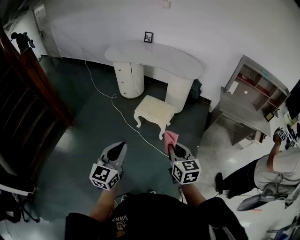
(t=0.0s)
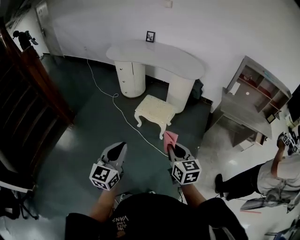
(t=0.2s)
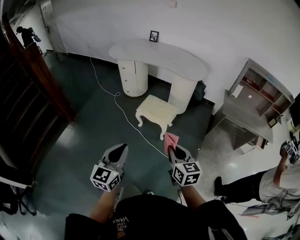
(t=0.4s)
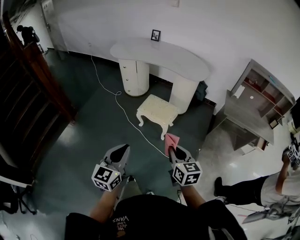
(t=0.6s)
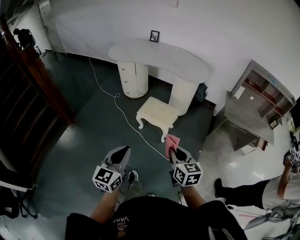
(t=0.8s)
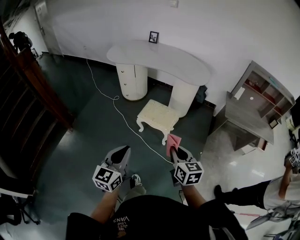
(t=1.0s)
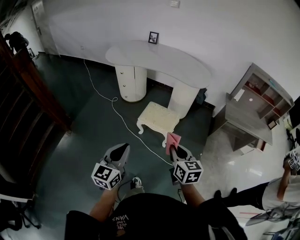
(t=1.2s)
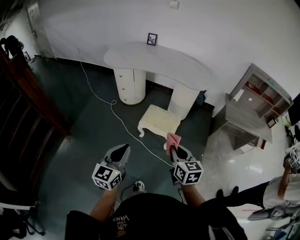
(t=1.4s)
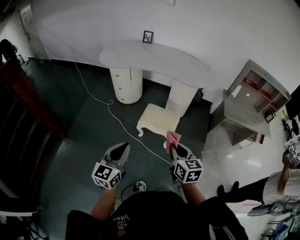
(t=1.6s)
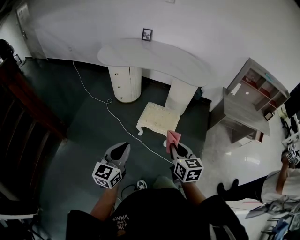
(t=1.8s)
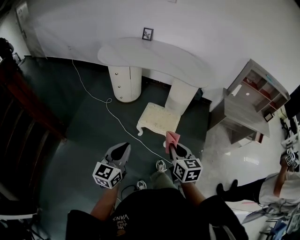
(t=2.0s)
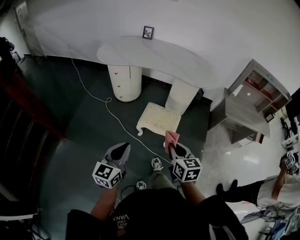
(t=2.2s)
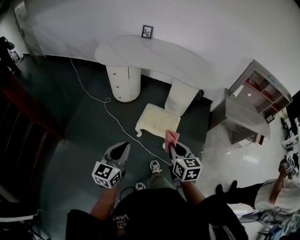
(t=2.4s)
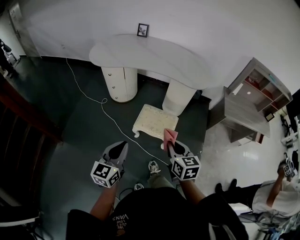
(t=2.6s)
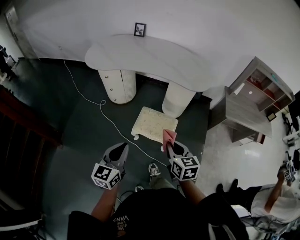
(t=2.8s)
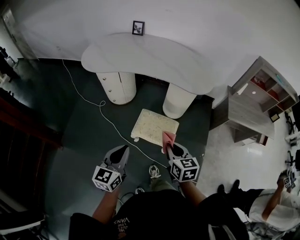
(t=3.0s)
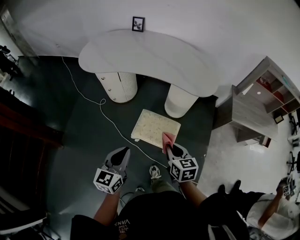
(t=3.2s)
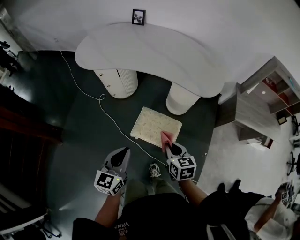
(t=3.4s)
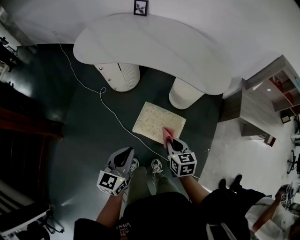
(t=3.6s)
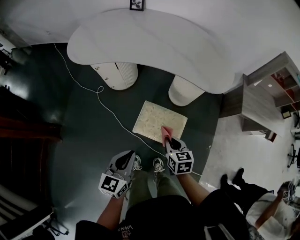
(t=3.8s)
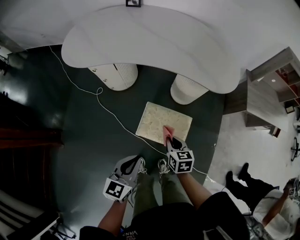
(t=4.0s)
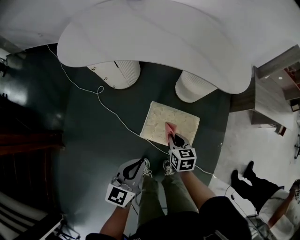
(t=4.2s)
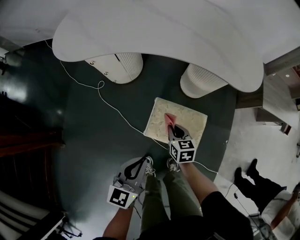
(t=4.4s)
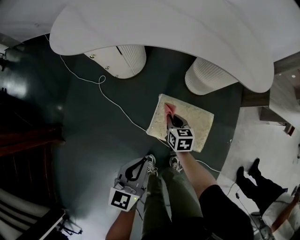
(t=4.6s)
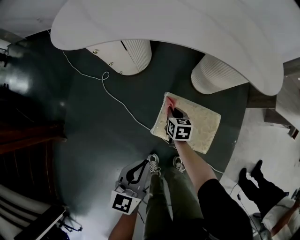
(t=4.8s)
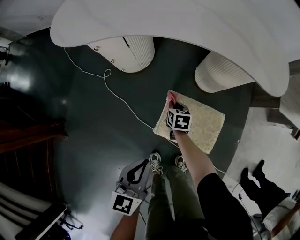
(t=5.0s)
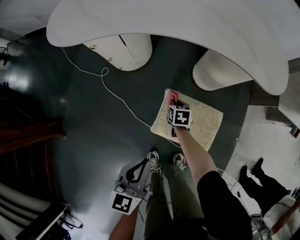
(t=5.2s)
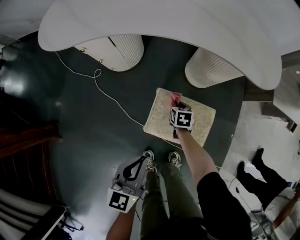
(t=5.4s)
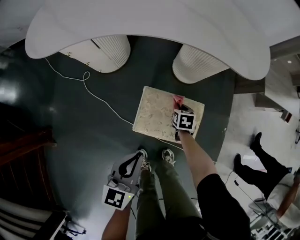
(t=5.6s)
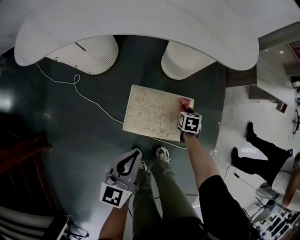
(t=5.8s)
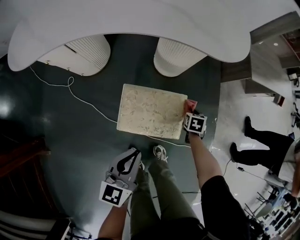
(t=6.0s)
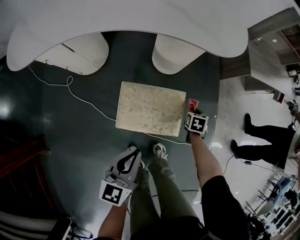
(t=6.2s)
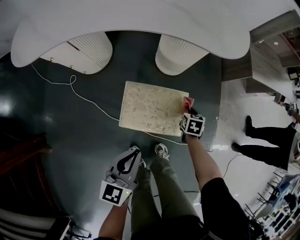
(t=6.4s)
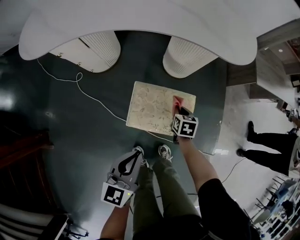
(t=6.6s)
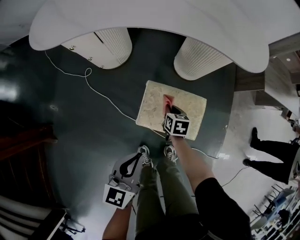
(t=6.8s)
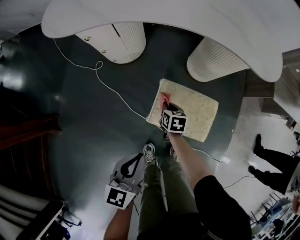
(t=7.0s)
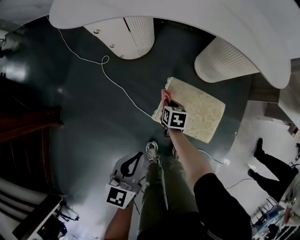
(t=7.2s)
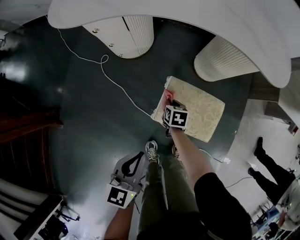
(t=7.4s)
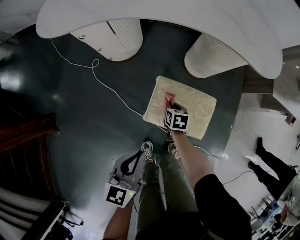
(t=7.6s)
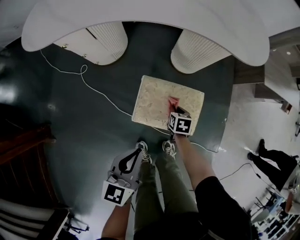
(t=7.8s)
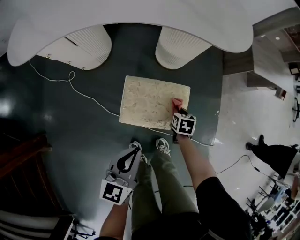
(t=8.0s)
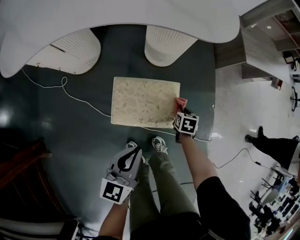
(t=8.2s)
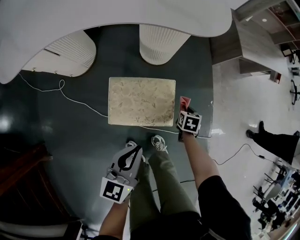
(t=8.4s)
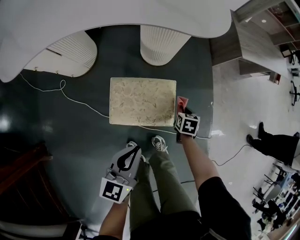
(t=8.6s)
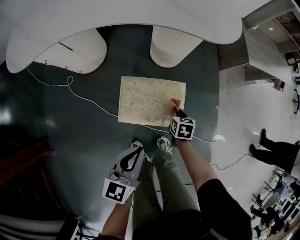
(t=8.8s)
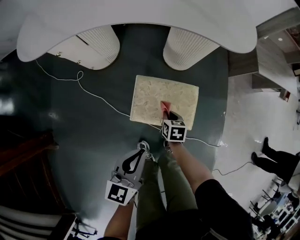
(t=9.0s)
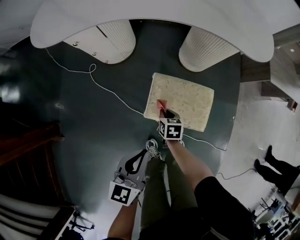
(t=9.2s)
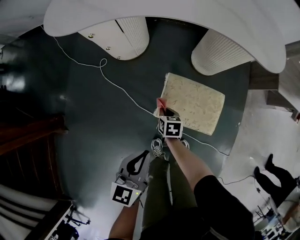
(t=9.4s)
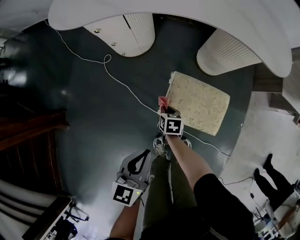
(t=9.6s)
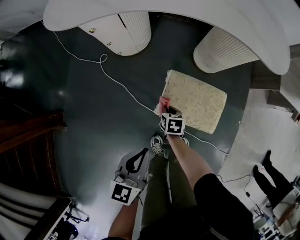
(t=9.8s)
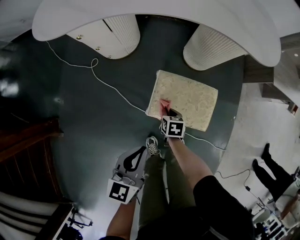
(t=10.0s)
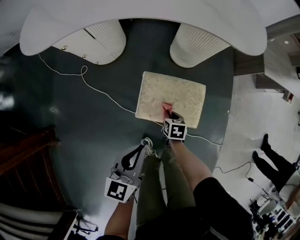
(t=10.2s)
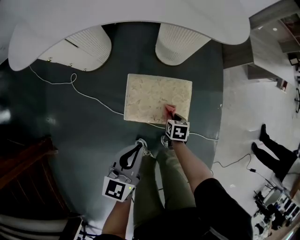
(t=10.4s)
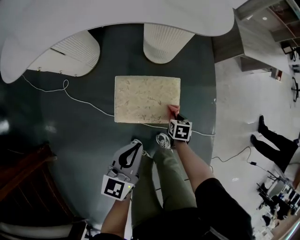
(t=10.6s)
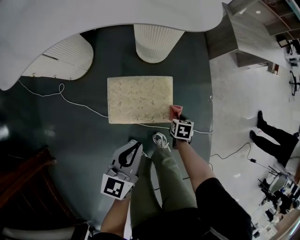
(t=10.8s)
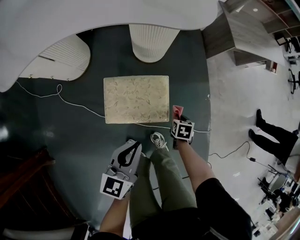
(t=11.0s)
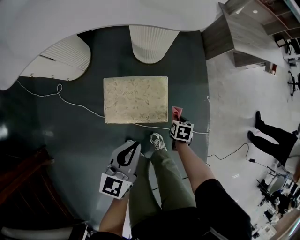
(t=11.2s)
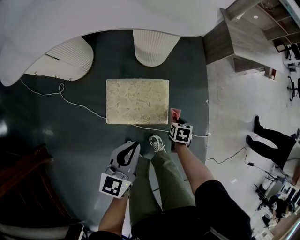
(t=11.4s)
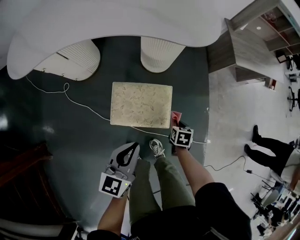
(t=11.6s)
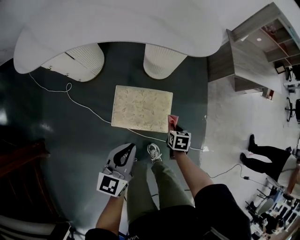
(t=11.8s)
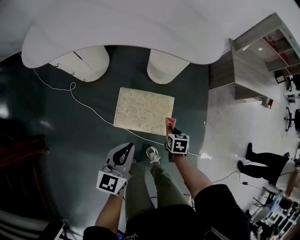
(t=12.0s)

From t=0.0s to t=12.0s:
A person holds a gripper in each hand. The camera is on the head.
From t=0.0s to t=1.6s: Both grippers move forward and to the left, roughly 20 cm.
From t=1.6s to t=3.0s: The grippers both shift forward by some 20 cm.
From t=3.0s to t=4.4s: The left gripper moves downward and forward, about 25 cm. Meanwhile the right gripper is displaced downward and forward by some 40 cm.
From t=4.4s to t=6.0s: The left gripper shifts by some 10 cm, while the right gripper moves some 30 cm, and swivels about 40 degrees.
From t=6.0s to t=7.6s: The right gripper ends up approximately 30 cm from where it was, and rotates roughly 20 degrees, while the left gripper ends up about 10 cm from where it was.
From t=9.0s to t=10.4s: The left gripper reaches about 10 cm to the left, then returns, while the right gripper moves some 20 cm to the left and comes back.
From t=10.4s to t=12.0s: The right gripper travels upward and to the right by about 15 cm, while the left gripper is displaced upward by approximately 5 cm.

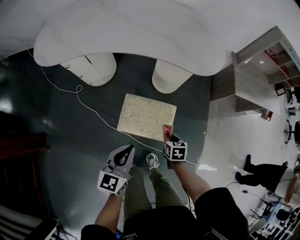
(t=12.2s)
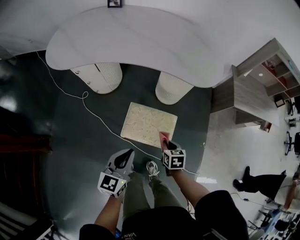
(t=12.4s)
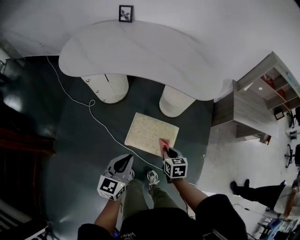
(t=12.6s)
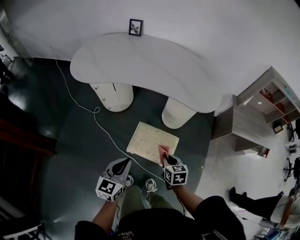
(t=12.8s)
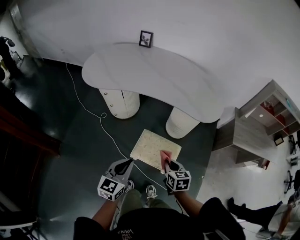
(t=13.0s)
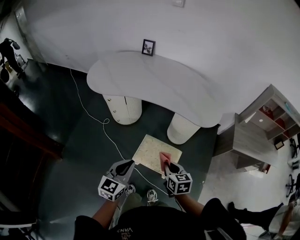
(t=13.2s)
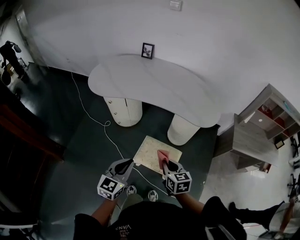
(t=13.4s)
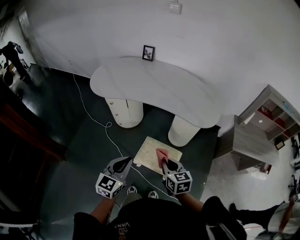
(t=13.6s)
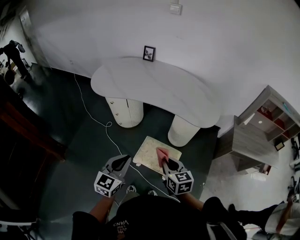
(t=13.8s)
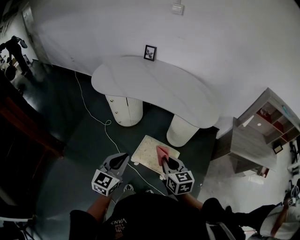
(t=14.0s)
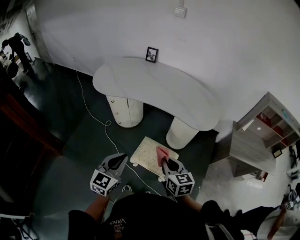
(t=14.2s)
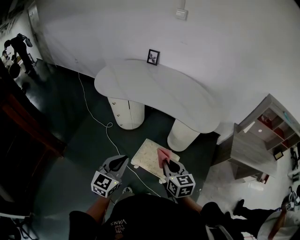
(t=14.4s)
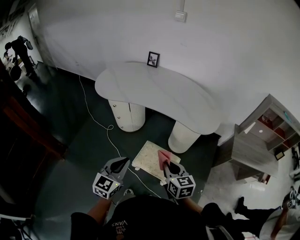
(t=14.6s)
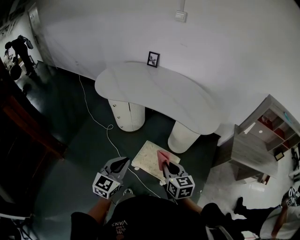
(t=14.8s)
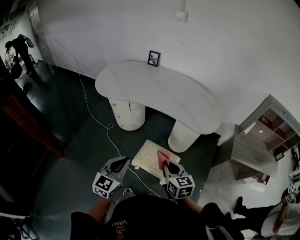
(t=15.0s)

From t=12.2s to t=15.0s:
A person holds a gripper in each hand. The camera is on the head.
From t=12.2s to t=13.6s: The left gripper moves upward, roughly 15 cm. Meanwhile the right gripper shifts about 30 cm upward, and tilts its fingers about 30 degrees upward.
From t=13.6s to t=15.0s: There are only small adjustments of the grippers.

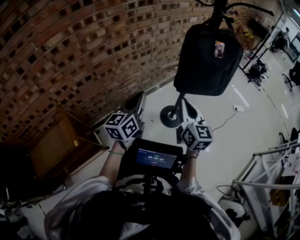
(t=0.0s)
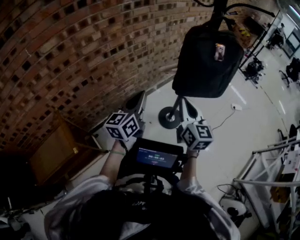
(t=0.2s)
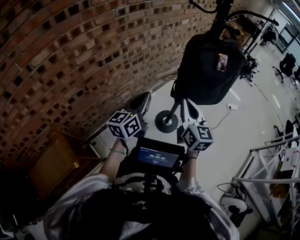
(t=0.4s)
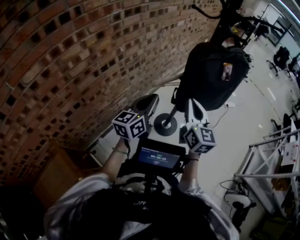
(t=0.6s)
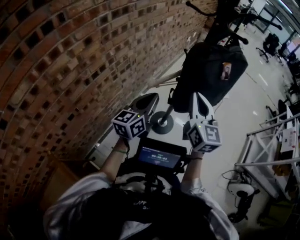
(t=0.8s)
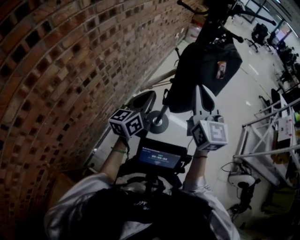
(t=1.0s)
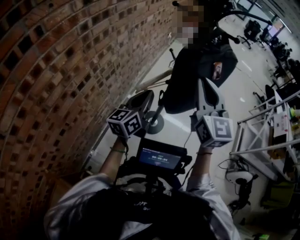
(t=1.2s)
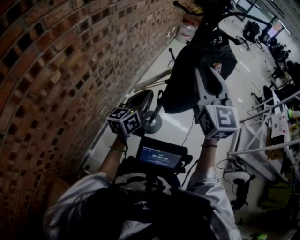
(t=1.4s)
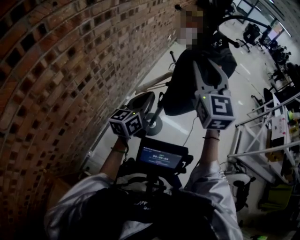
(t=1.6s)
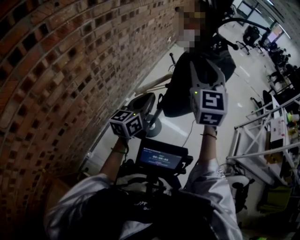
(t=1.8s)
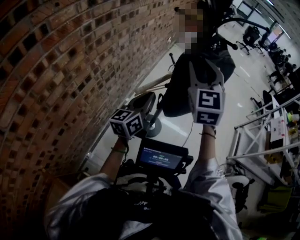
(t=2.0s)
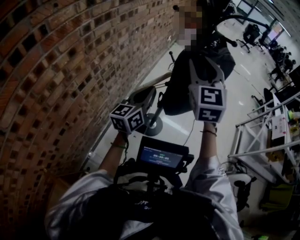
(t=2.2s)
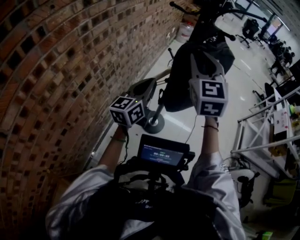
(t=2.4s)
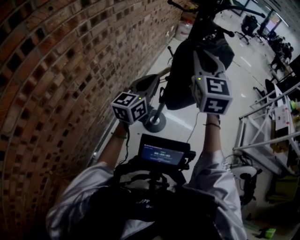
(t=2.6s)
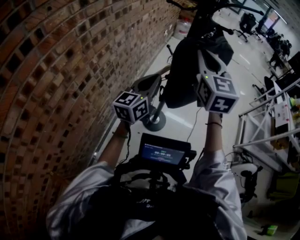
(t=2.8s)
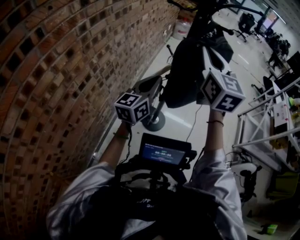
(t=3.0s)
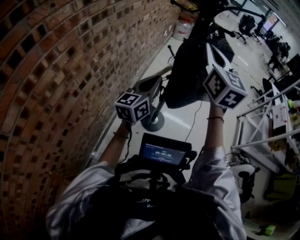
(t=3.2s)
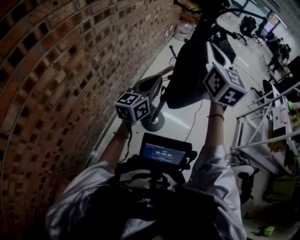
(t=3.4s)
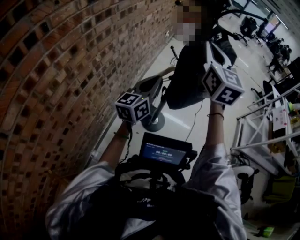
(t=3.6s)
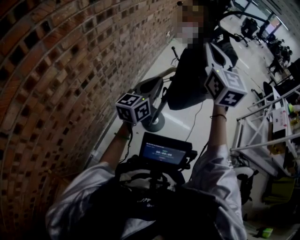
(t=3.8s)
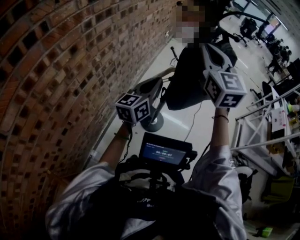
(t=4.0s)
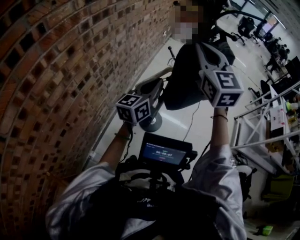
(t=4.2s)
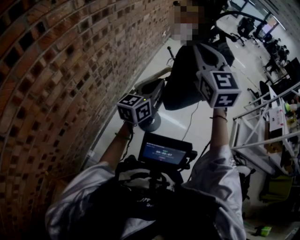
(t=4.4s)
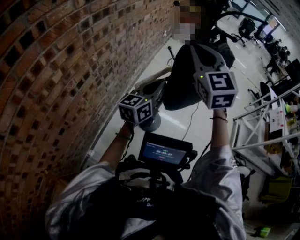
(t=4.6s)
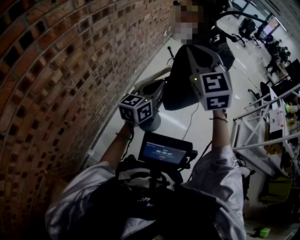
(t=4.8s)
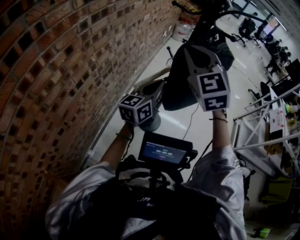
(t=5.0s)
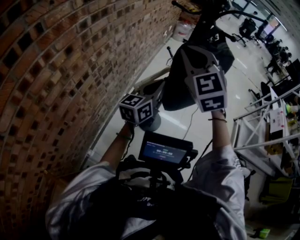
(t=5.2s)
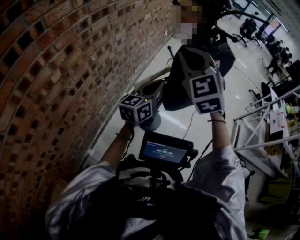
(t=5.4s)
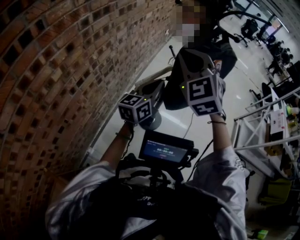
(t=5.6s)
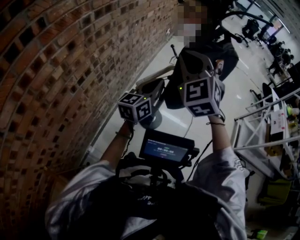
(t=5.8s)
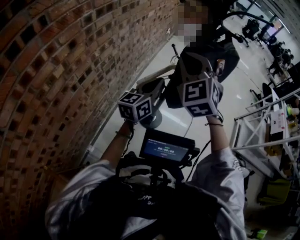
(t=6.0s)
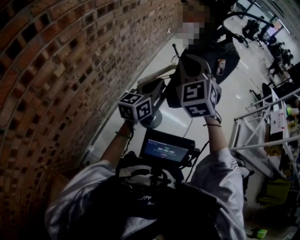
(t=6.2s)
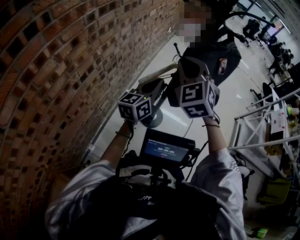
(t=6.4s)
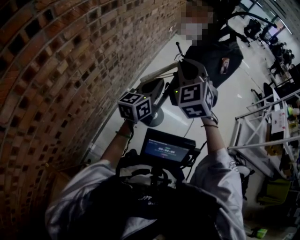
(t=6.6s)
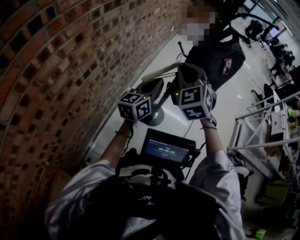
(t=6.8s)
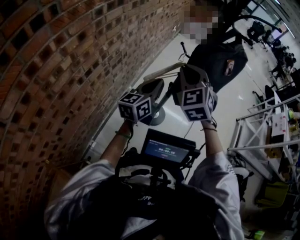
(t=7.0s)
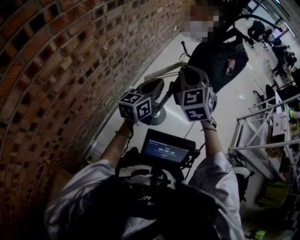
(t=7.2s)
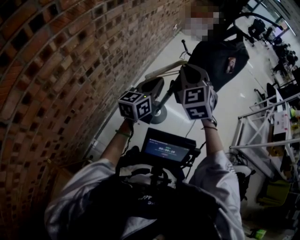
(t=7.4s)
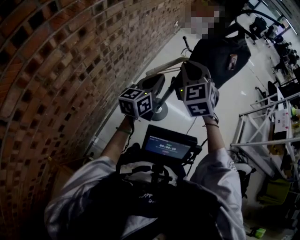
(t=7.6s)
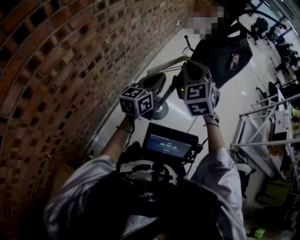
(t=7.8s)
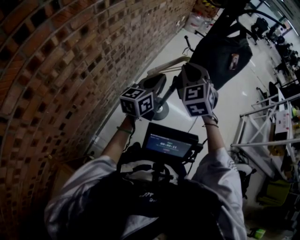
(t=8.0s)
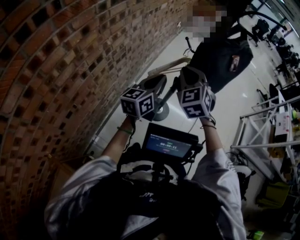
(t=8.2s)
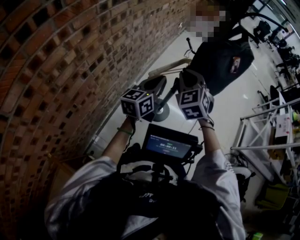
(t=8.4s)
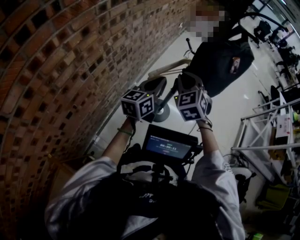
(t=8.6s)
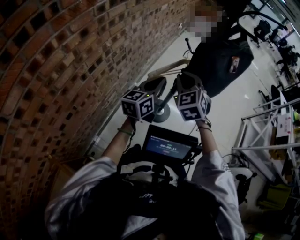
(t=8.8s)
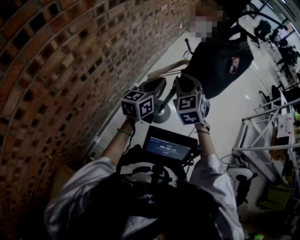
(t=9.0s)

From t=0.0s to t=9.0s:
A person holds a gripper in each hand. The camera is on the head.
From t=0.0s to t=1.6s: The right gripper goes approximately 20 cm upward, turns by about 40 degrees, and opens its fingers. Meanwhile the left gripper ends up roughly 20 cm from where it was, and swivels about 30 degrees.
From t=1.6s to t=3.0s: The right gripper closes up. Meanwhile the left gripper moves some 5 cm.
From t=3.0s to t=4.4s: The right gripper heads to the left, covering roughly 5 cm, and changes its angle by roughly 20 degrees.
From t=4.4s to t=6.0s: The right gripper shifts roughly 5 cm downward, and swivels about 30 degrees.
From t=6.0s to t=7.6s: The right gripper moves downward, about 10 cm.
From t=7.6s to t=9.0s: The right gripper is displaced downward by about 5 cm.
